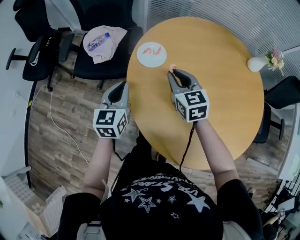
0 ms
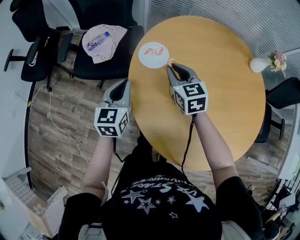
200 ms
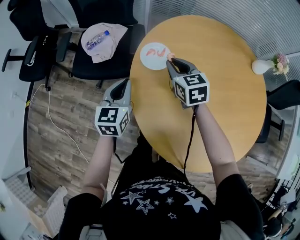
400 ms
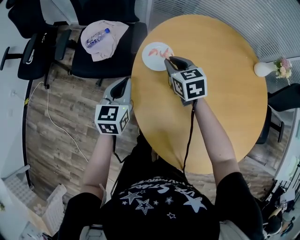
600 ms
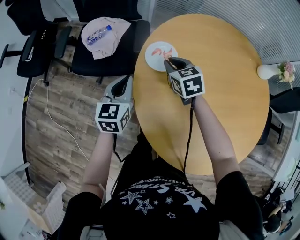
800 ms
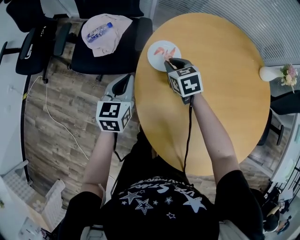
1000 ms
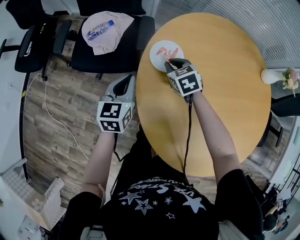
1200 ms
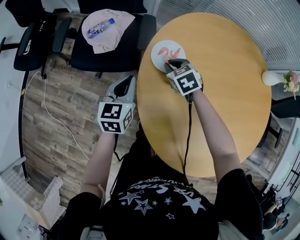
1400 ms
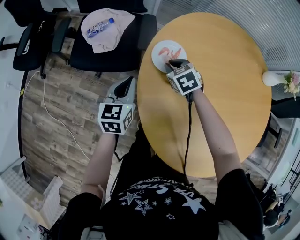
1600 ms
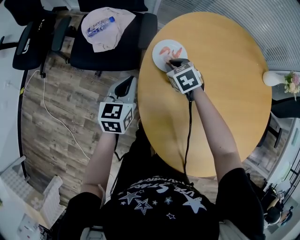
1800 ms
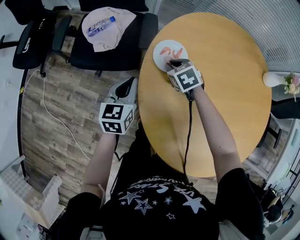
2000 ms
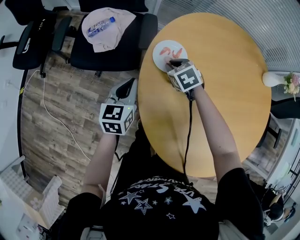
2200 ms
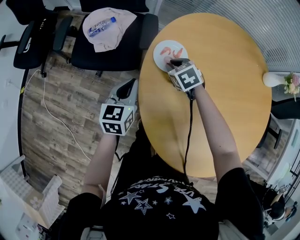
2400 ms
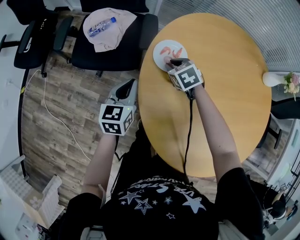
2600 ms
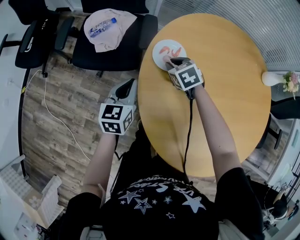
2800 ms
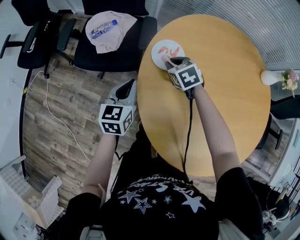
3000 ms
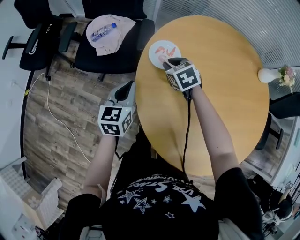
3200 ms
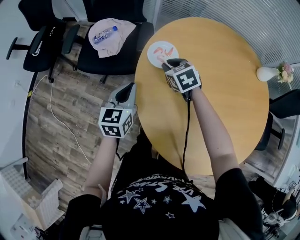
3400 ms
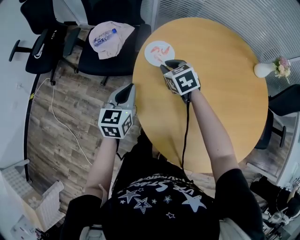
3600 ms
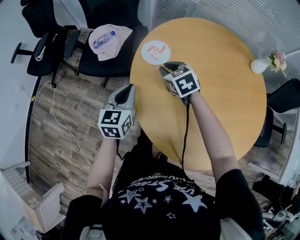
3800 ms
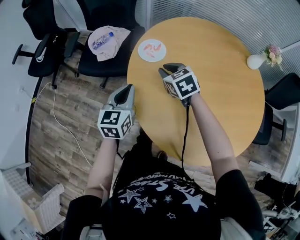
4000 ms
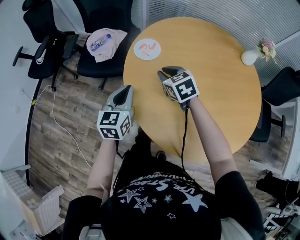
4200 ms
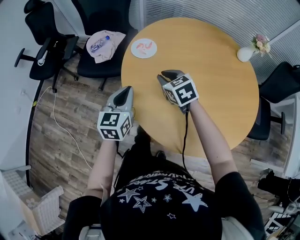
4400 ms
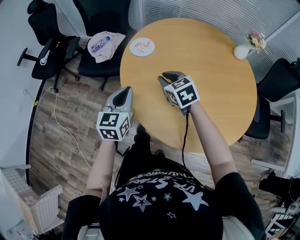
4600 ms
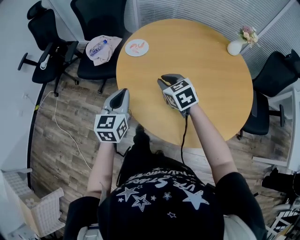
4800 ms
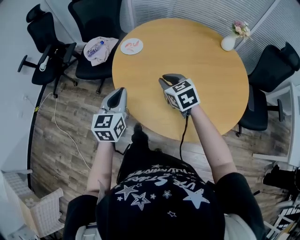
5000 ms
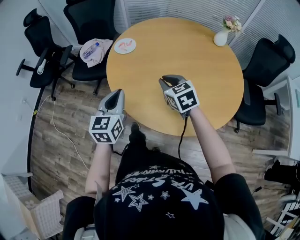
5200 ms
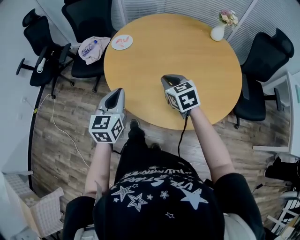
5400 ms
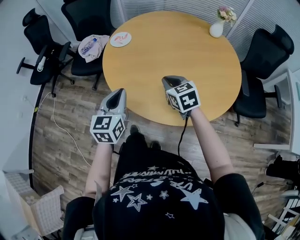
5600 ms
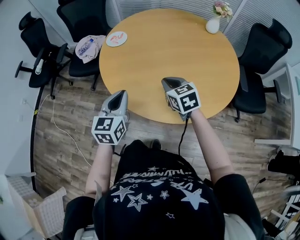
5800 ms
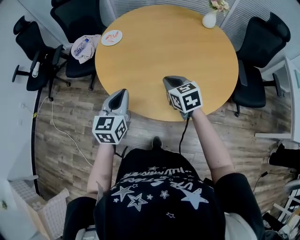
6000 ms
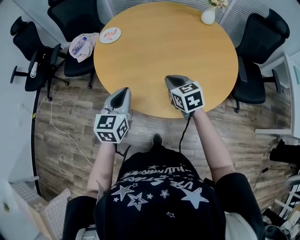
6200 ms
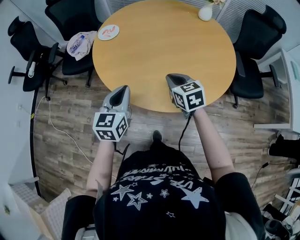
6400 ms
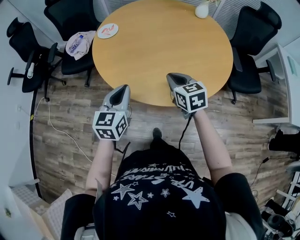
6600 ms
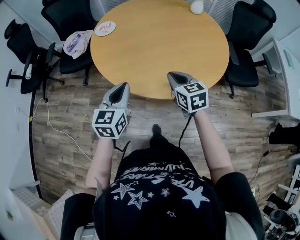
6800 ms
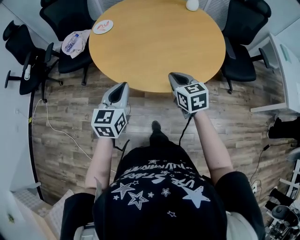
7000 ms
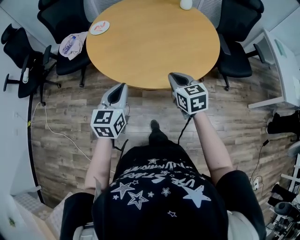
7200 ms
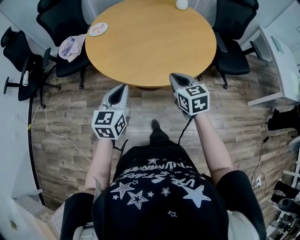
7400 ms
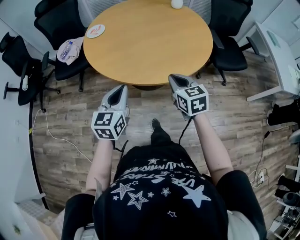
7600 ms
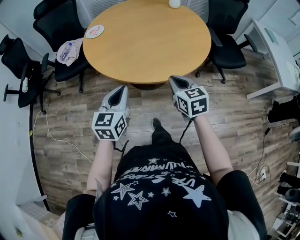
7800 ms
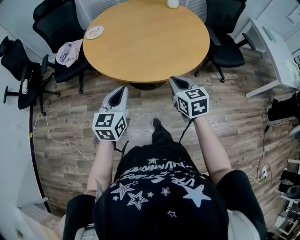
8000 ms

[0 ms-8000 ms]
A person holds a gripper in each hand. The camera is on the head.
0 ms to 1600 ms: The right gripper travels downward and forward by some 20 cm, and points its fingers some 30 degrees further downward. The left gripper moves downward and forward, approximately 15 cm.
1600 ms to 3200 ms: The left gripper moves backward, about 5 cm; the right gripper shifts by some 5 cm.
3200 ms to 4800 ms: Both grippers move backward and upward, about 30 cm.
4800 ms to 6400 ms: The two grippers go some 20 cm backward and to the right.
6400 ms to 8000 ms: The grippers both shift backward by roughly 20 cm.

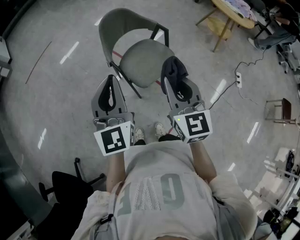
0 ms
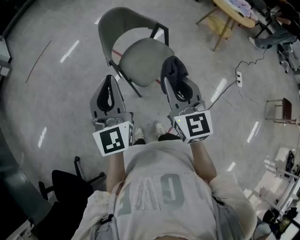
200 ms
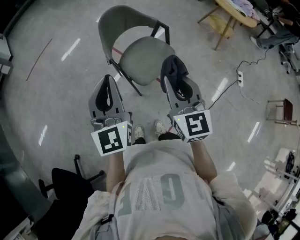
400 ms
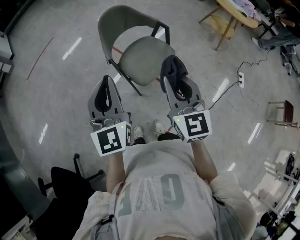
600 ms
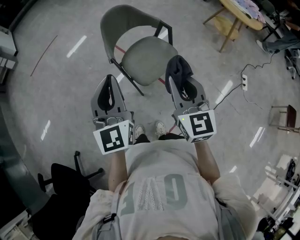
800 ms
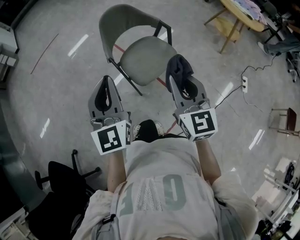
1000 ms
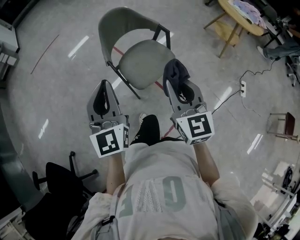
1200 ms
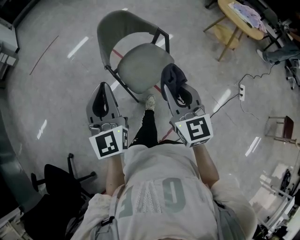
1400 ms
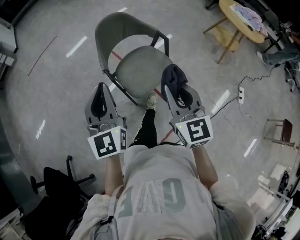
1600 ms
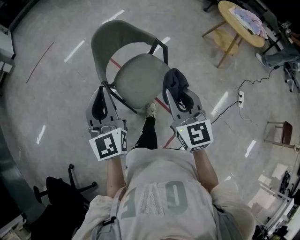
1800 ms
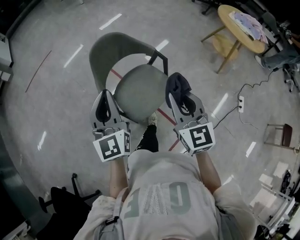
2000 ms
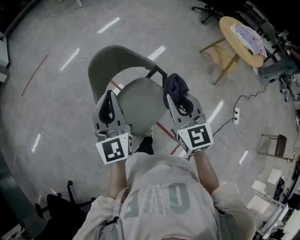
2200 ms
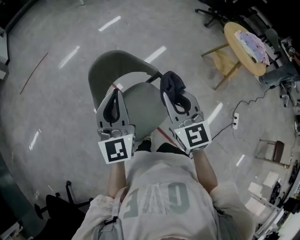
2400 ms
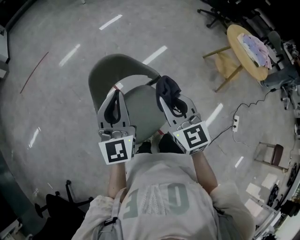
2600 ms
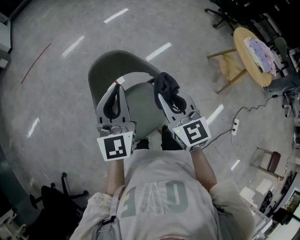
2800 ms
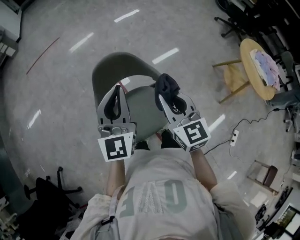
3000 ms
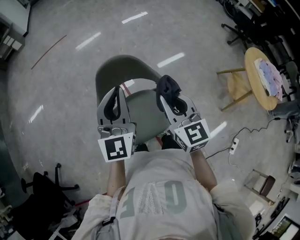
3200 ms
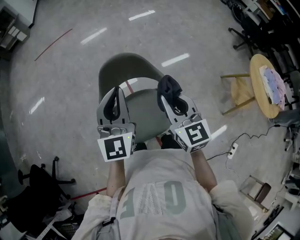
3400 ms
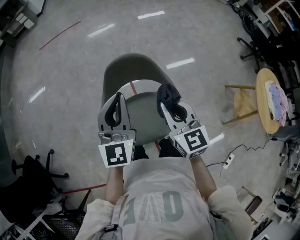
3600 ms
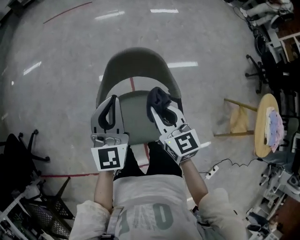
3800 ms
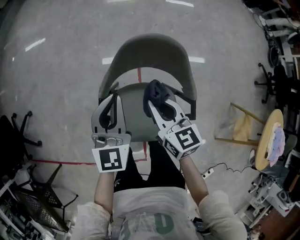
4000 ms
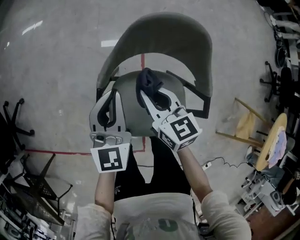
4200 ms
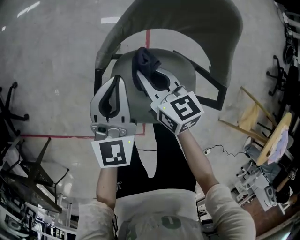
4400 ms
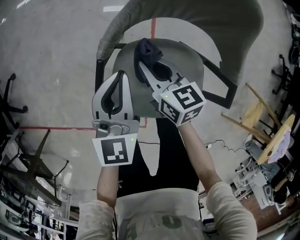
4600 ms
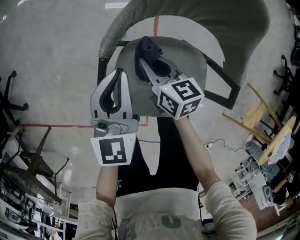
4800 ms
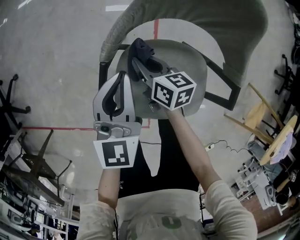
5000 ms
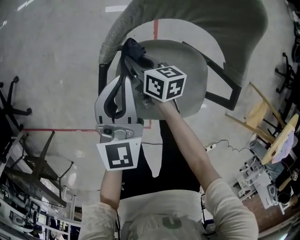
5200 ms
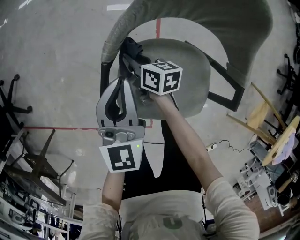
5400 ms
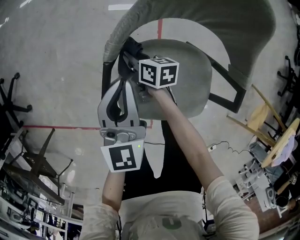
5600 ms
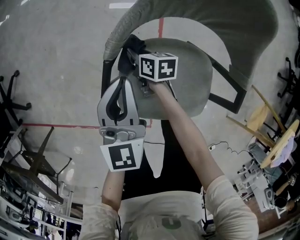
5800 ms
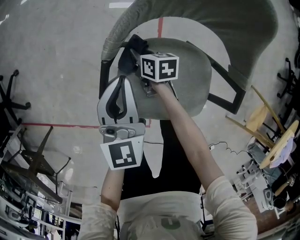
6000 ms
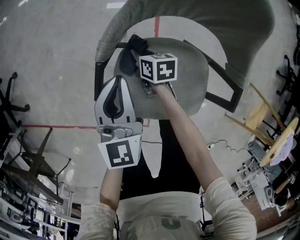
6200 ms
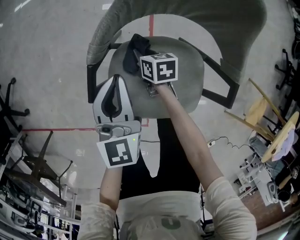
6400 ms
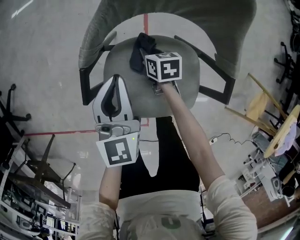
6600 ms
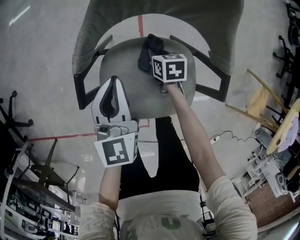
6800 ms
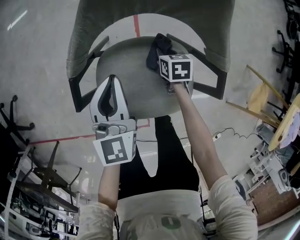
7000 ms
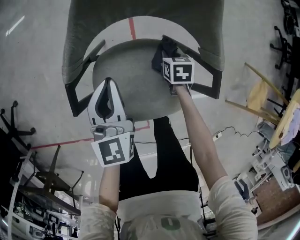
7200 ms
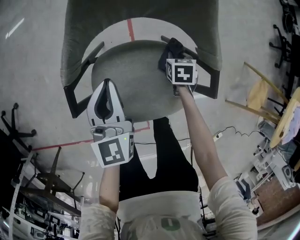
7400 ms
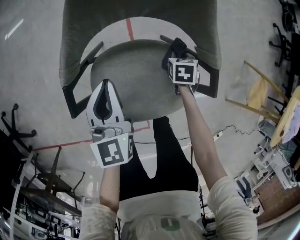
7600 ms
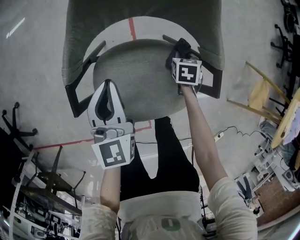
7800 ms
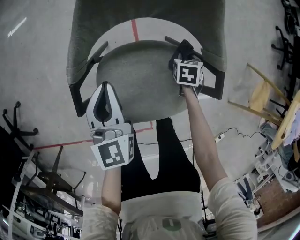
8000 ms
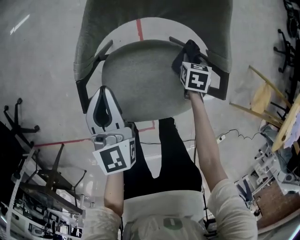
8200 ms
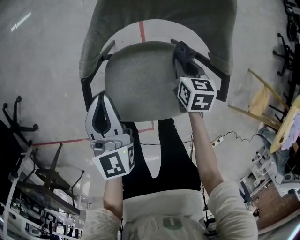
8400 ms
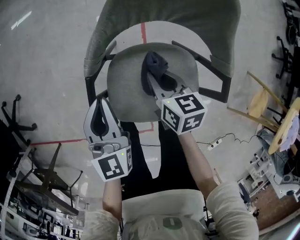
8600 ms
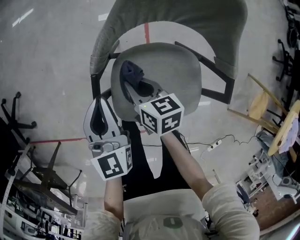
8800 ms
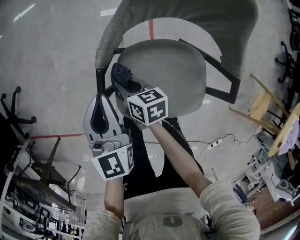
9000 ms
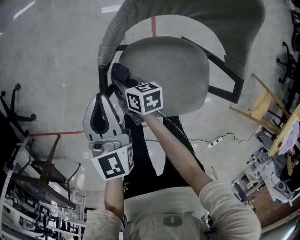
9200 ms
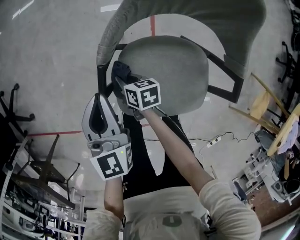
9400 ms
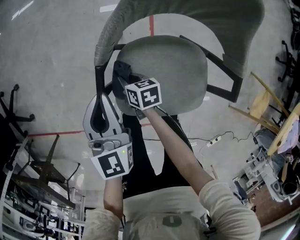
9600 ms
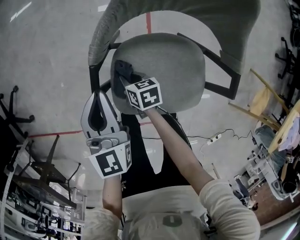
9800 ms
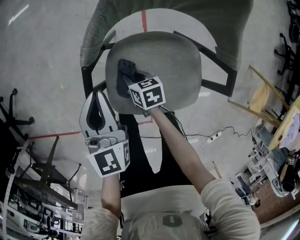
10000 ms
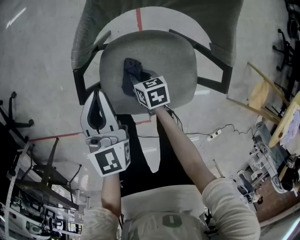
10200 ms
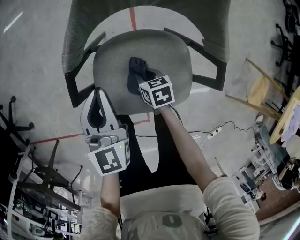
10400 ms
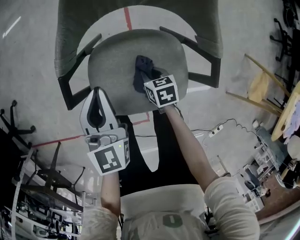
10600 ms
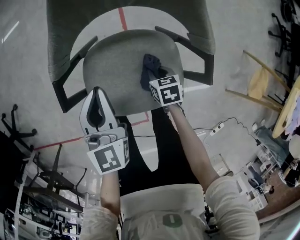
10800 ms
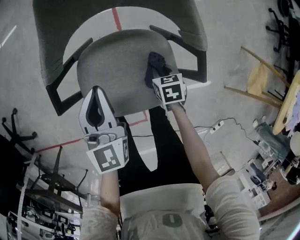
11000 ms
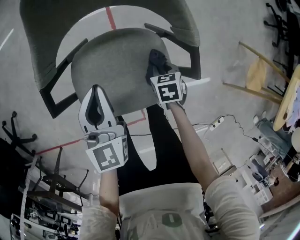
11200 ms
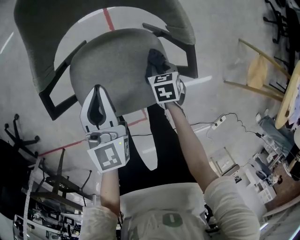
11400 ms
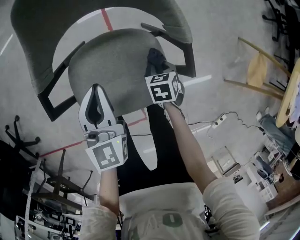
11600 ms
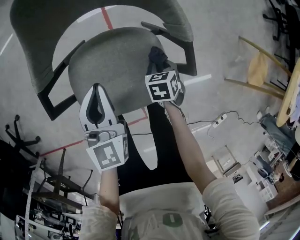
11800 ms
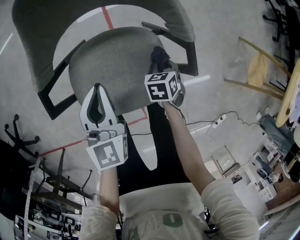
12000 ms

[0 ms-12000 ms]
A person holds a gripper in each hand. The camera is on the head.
0 ms to 1600 ms: The right gripper shifts approximately 10 cm to the right and forward; the left gripper moves forward and to the right, some 5 cm.
1600 ms to 3000 ms: Both grippers move forward, approximately 35 cm.
3000 ms to 4400 ms: The two grippers go roughly 35 cm downward. The left gripper swivels roughly 40 degrees. The right gripper rotates roughly 50 degrees.
4400 ms to 6000 ms: The right gripper shifts some 20 cm downward, and changes its angle by some 30 degrees. Meanwhile the left gripper moves downward, approximately 5 cm.
6000 ms to 7600 ms: The right gripper shifts by about 35 cm, and rotates approximately 40 degrees, while the left gripper ends up about 10 cm from where it was.
7600 ms to 9000 ms: The right gripper changes place by approximately 35 cm, and turns by some 50 degrees, while the left gripper shifts by some 15 cm.
9000 ms to 10400 ms: The right gripper moves to the right, backward and downward, some 20 cm. Meanwhile the left gripper is displaced to the right by roughly 5 cm.
10400 ms to 12000 ms: The right gripper shifts by some 20 cm, and changes its angle by about 30 degrees. Meanwhile the left gripper shifts by about 10 cm.

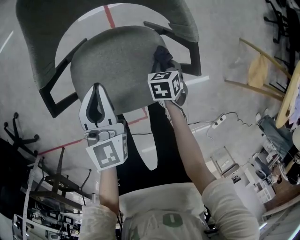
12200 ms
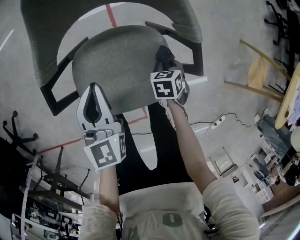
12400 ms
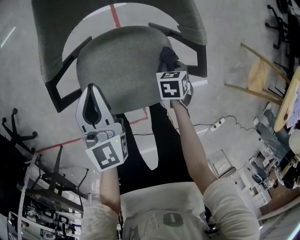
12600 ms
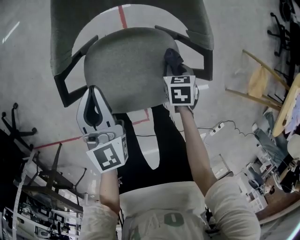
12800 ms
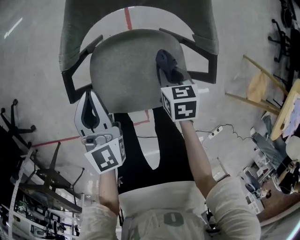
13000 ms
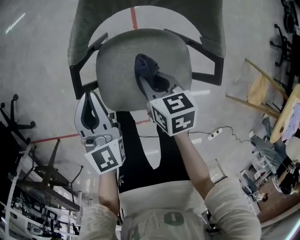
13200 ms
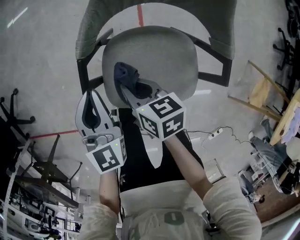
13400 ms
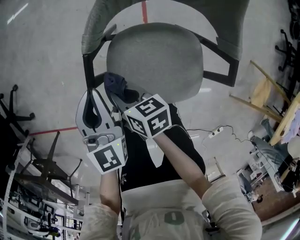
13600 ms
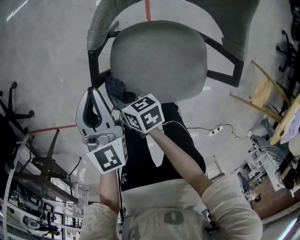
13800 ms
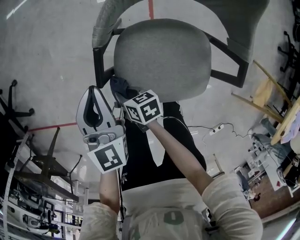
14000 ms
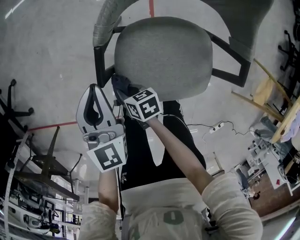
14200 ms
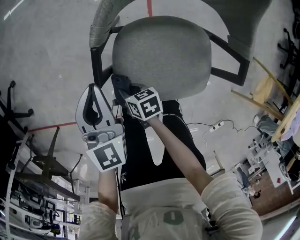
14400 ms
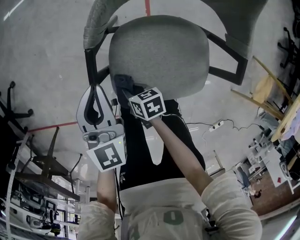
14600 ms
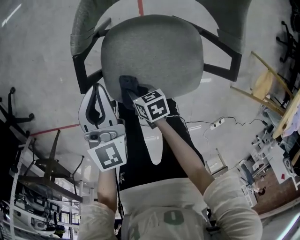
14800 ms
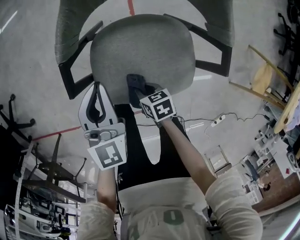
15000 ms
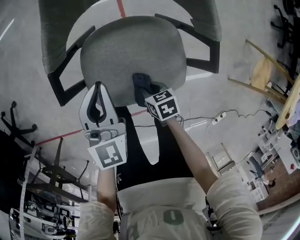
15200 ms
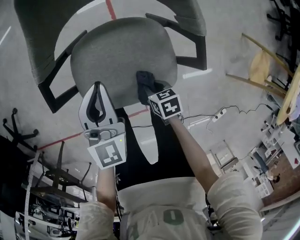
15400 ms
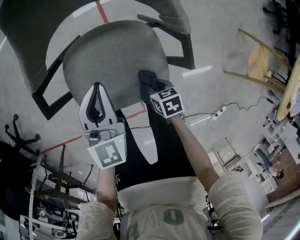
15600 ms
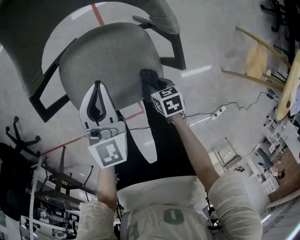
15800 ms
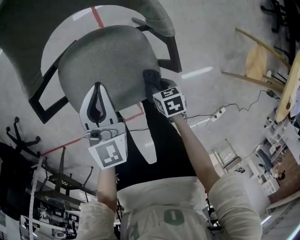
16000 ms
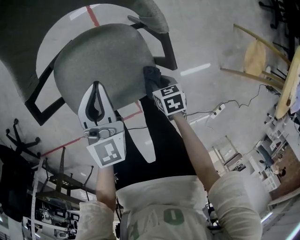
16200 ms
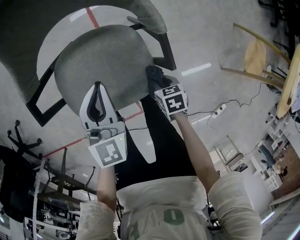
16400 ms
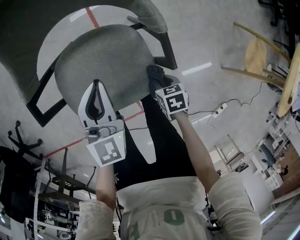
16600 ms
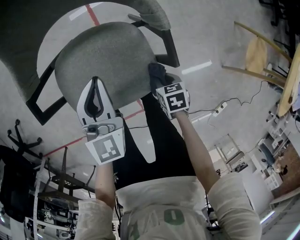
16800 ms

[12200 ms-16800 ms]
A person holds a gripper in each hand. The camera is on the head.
12200 ms to 13800 ms: The left gripper ends up about 20 cm from where it was; the right gripper changes place by some 40 cm, and changes its angle by some 50 degrees.
13800 ms to 15200 ms: The right gripper goes about 25 cm backward, to the right and downward. The left gripper moves to the right and backward, some 15 cm.
15200 ms to 16800 ms: The left gripper changes place by approximately 15 cm, while the right gripper changes place by about 20 cm.
